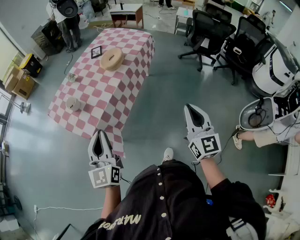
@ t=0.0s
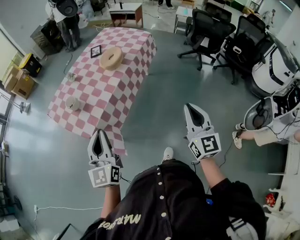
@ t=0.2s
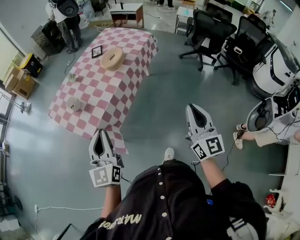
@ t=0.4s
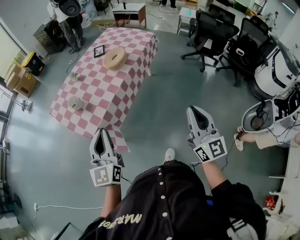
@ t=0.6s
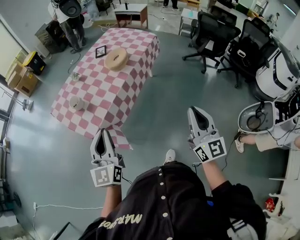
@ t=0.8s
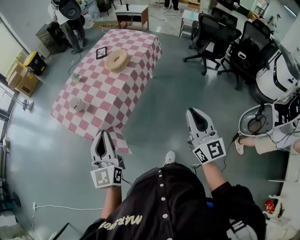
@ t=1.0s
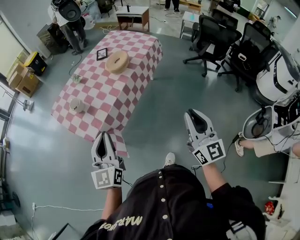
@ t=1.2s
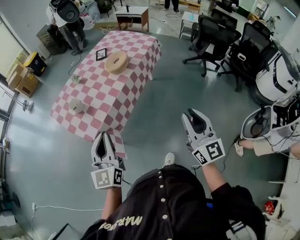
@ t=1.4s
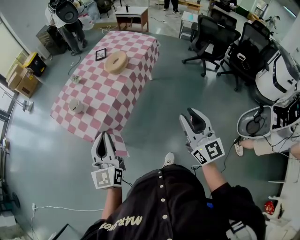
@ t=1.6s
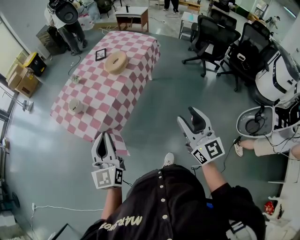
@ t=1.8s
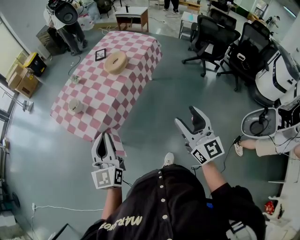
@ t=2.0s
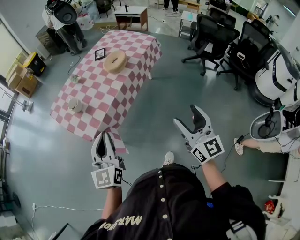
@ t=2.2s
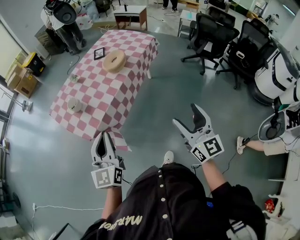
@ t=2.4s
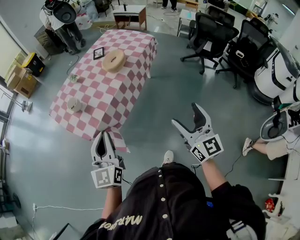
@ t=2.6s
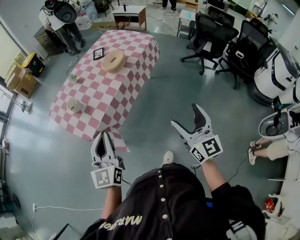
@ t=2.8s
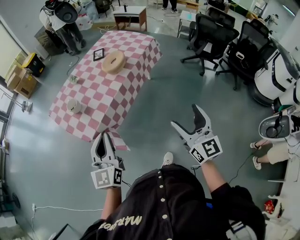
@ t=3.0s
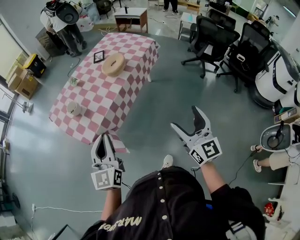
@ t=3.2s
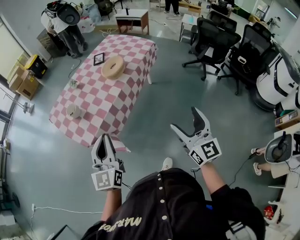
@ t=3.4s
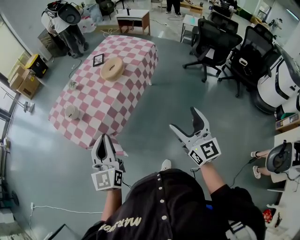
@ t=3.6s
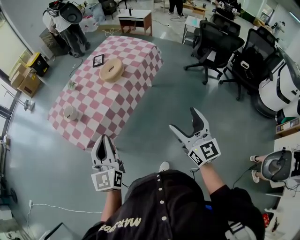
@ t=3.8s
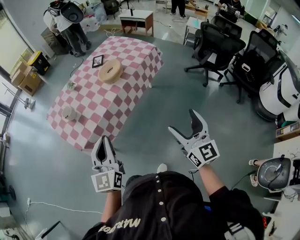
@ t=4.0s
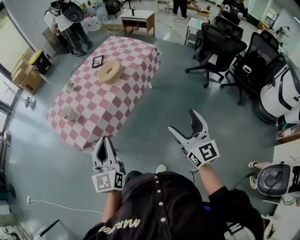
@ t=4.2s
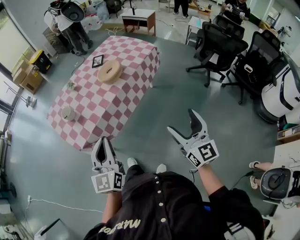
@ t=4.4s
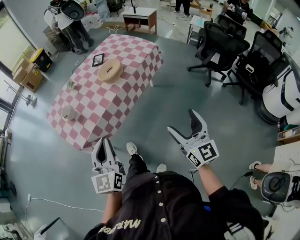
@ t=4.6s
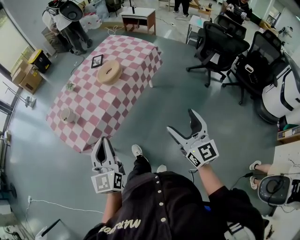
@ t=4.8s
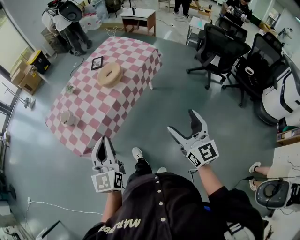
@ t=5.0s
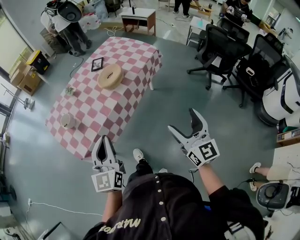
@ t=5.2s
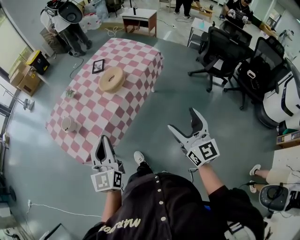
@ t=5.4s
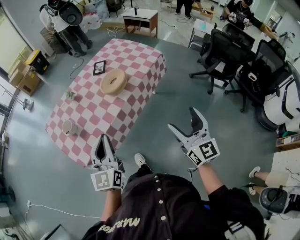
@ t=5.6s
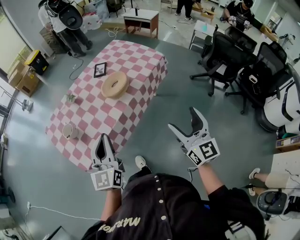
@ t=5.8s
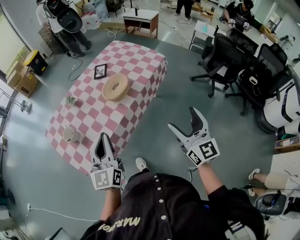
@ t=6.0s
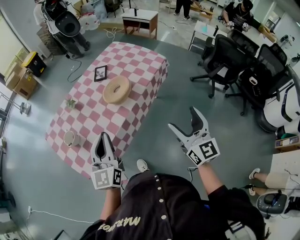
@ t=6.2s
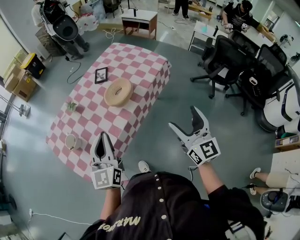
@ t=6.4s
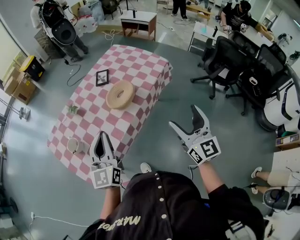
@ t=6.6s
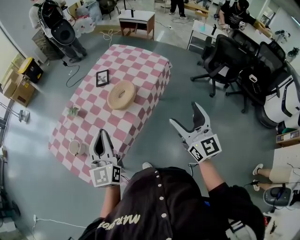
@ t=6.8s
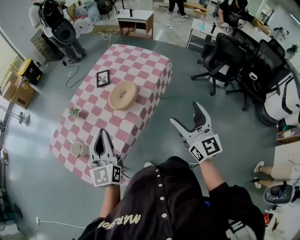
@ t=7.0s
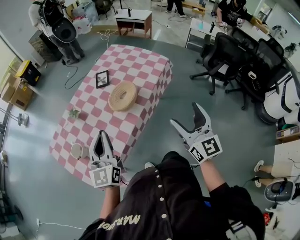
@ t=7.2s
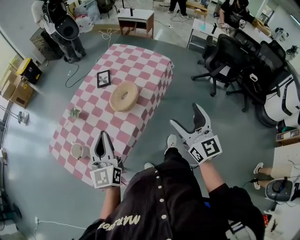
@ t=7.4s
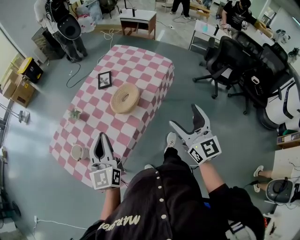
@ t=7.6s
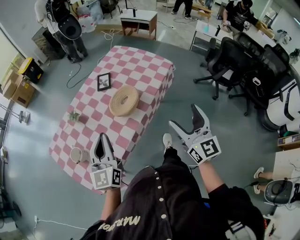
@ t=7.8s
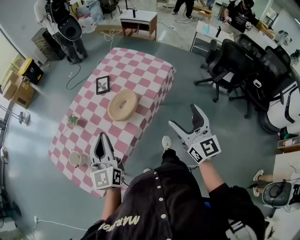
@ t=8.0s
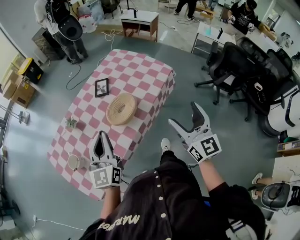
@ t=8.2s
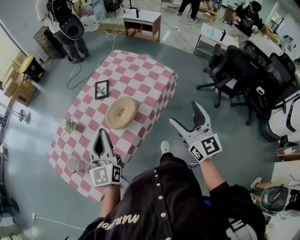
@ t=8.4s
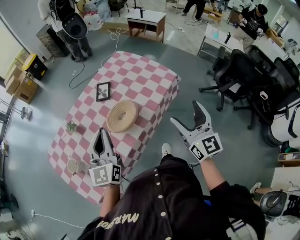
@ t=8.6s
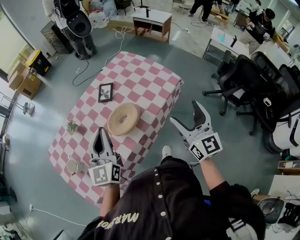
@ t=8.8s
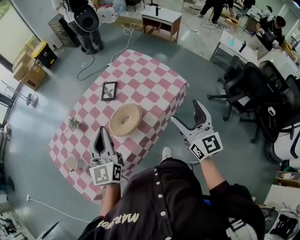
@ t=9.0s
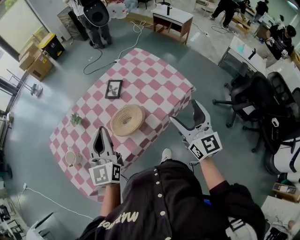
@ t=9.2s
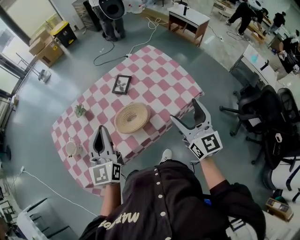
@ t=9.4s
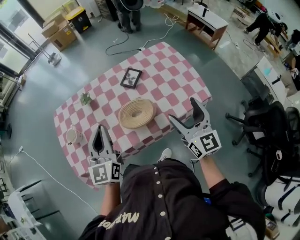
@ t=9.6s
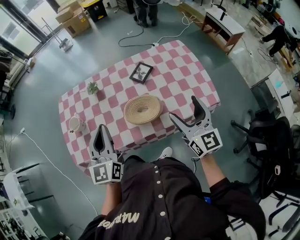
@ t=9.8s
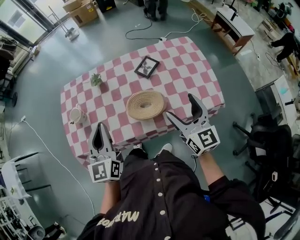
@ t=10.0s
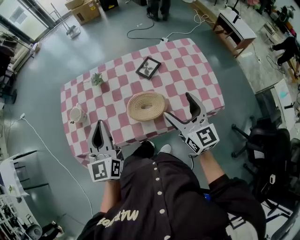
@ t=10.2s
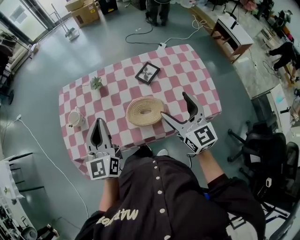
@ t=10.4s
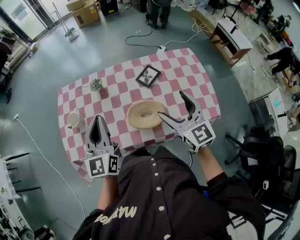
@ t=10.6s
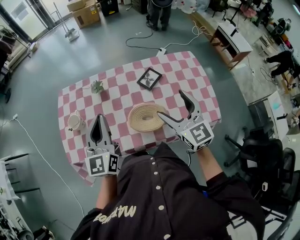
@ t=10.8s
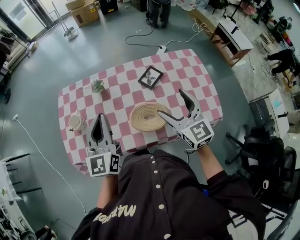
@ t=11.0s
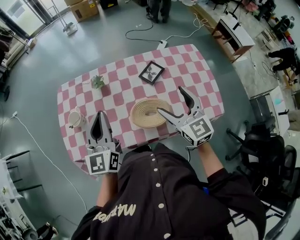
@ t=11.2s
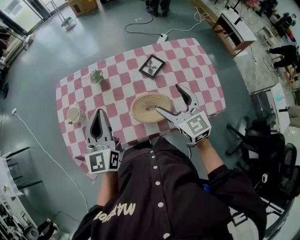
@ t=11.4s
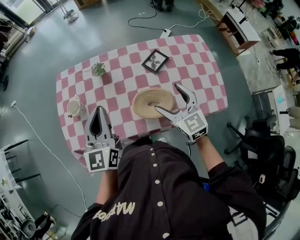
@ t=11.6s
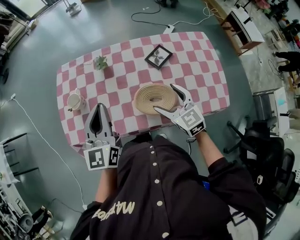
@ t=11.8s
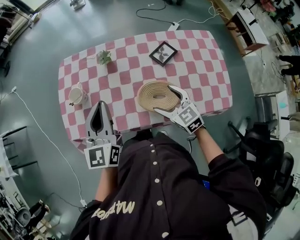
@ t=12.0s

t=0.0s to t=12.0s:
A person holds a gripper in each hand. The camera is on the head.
t=0.0s to t=1.6s: The grippers stay close to where they were, moving slightly.
t=1.6s to t=3.0s: The right gripper opens up.
t=3.0s to t=4.4s: The right gripper shifts about 15 cm to the right and forward; the left gripper travels to the right by some 10 cm.
t=4.4s to t=6.0s: The grippers both shift forward by some 20 cm.
t=6.0s to t=7.6s: Both grippers travel together forward and to the left, approximately 15 cm.
t=7.6s to t=9.0s: The two grippers go approximately 20 cm forward and to the right.
t=9.0s to t=10.4s: The left gripper changes place by approximately 10 cm, and turns by some 30 degrees. Meanwhile the right gripper moves about 20 cm, and turns by about 40 degrees.
t=10.4s to t=12.0s: The right gripper shifts roughly 20 cm downward and to the left, and rotates approximately 30 degrees. The left gripper shifts by some 5 cm.

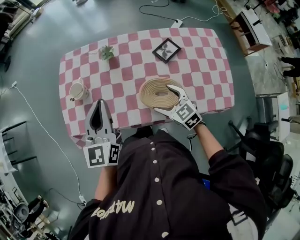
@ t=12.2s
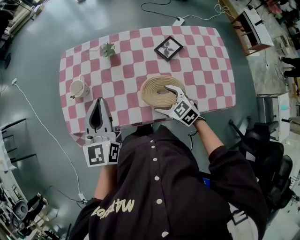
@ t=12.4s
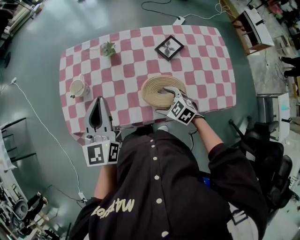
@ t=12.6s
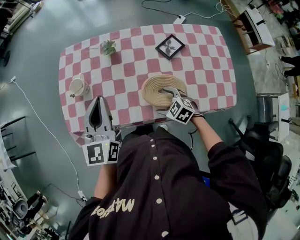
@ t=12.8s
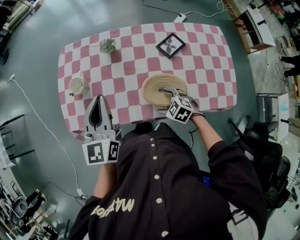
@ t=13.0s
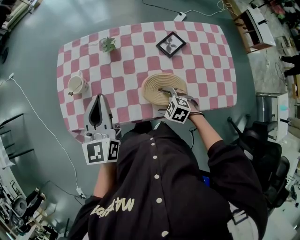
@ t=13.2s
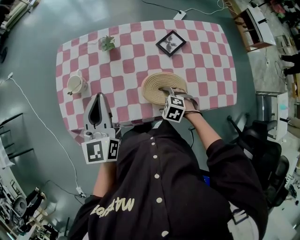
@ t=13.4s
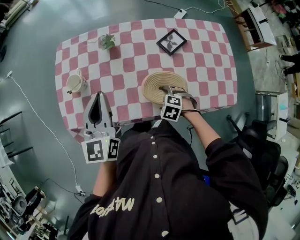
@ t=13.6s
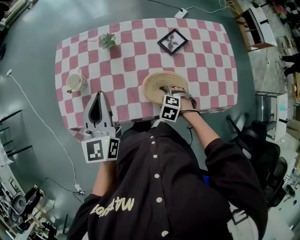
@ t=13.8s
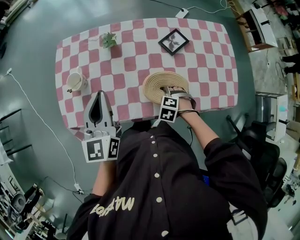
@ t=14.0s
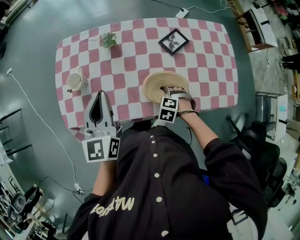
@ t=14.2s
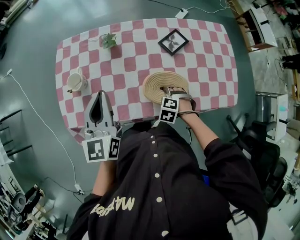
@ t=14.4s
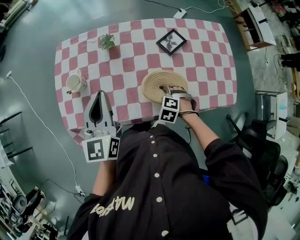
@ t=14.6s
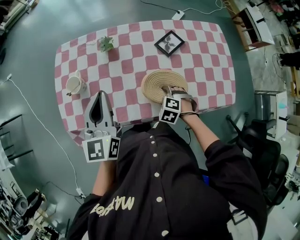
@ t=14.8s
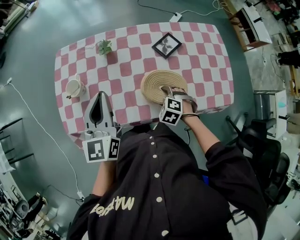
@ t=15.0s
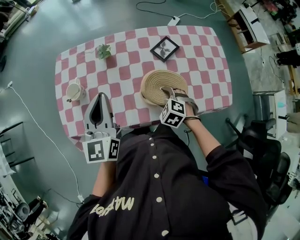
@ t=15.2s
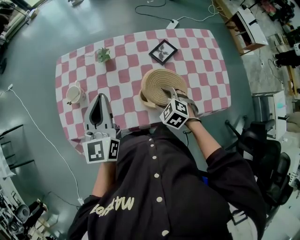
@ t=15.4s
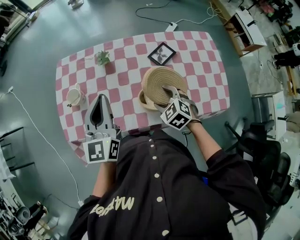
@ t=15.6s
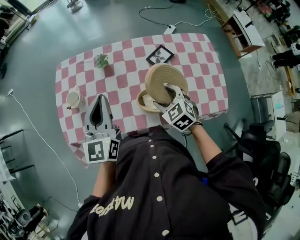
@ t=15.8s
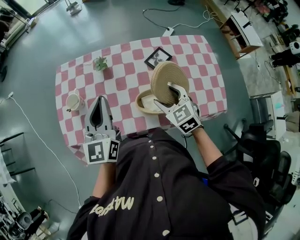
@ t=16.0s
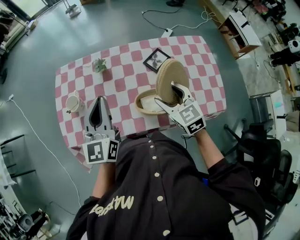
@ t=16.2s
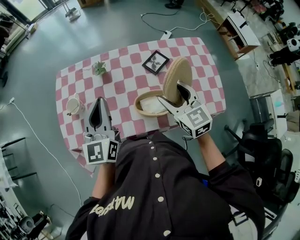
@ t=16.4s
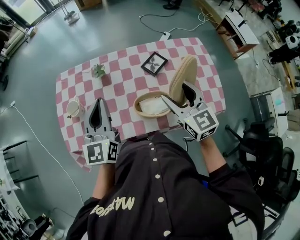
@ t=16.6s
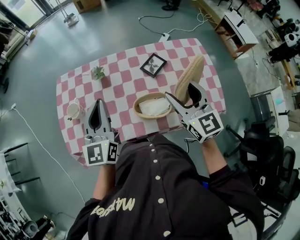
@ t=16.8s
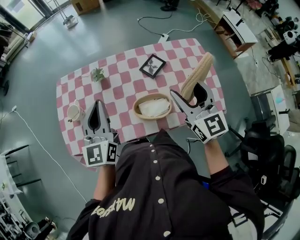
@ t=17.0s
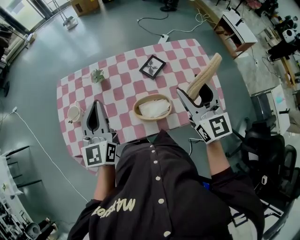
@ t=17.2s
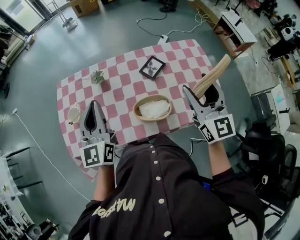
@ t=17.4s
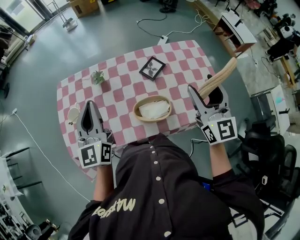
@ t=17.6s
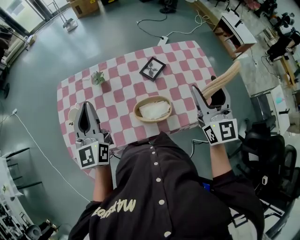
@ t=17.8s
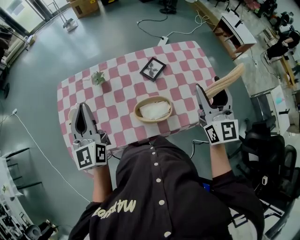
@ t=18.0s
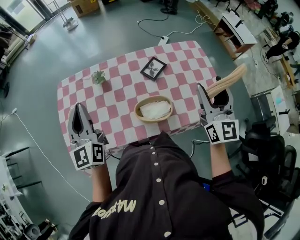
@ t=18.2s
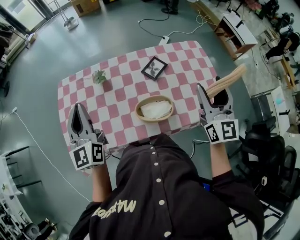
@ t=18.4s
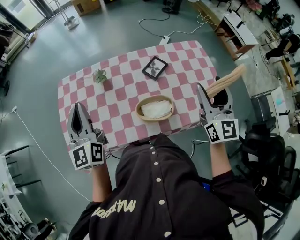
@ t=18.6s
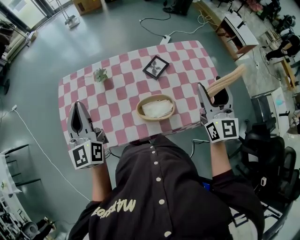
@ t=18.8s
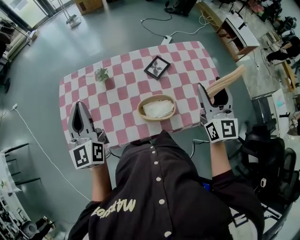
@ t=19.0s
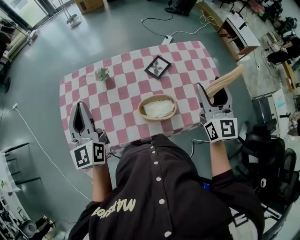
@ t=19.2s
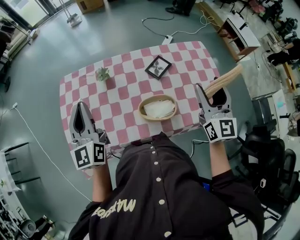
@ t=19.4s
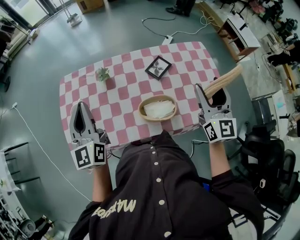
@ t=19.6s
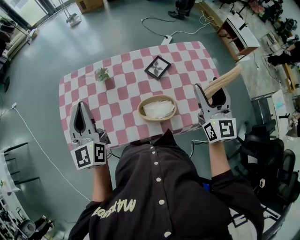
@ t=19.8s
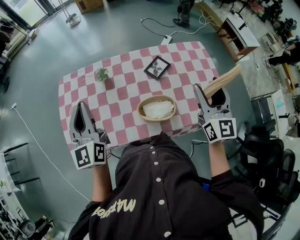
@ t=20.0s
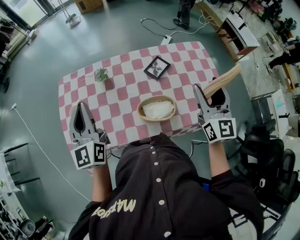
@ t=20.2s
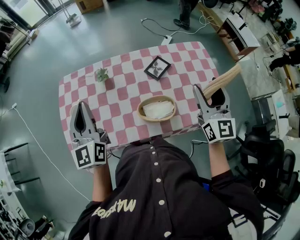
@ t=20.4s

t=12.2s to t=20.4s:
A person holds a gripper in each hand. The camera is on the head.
t=12.2s to t=13.8s: The right gripper heads downward, covering roughly 15 cm, and angles its fingers downward, by approximately 40 degrees.
t=13.8s to t=15.4s: The right gripper moves upward, approximately 10 cm, and turns by roughly 30 degrees.
t=15.4s to t=17.2s: The right gripper goes some 30 cm upward and to the right, and points its fingers some 60 degrees further upward.
t=17.2s to t=18.8s: The left gripper is displaced to the left by about 10 cm; the right gripper goes approximately 5 cm to the right.
t=18.8s to t=20.4s: The grippers move only a little.

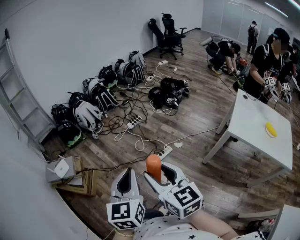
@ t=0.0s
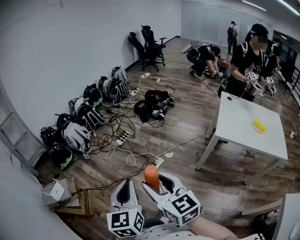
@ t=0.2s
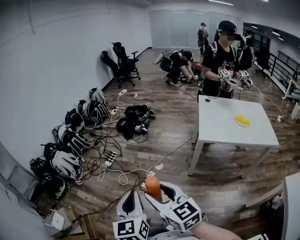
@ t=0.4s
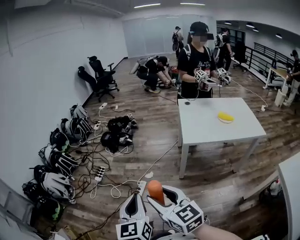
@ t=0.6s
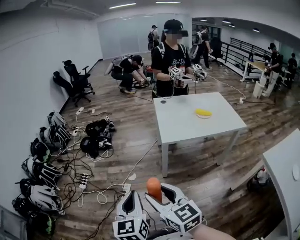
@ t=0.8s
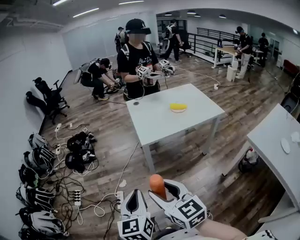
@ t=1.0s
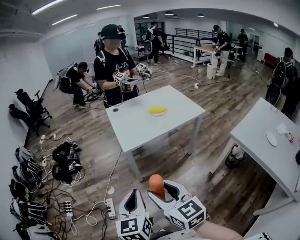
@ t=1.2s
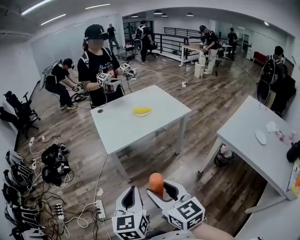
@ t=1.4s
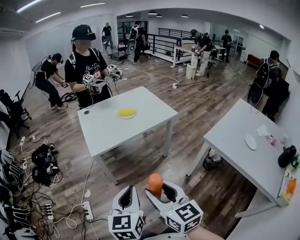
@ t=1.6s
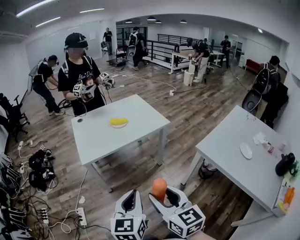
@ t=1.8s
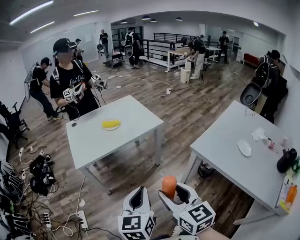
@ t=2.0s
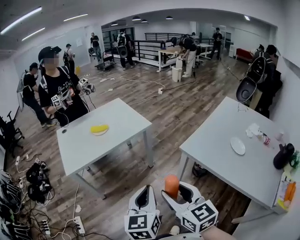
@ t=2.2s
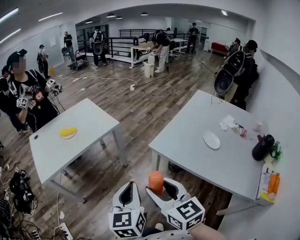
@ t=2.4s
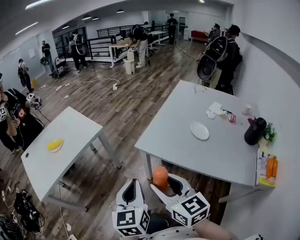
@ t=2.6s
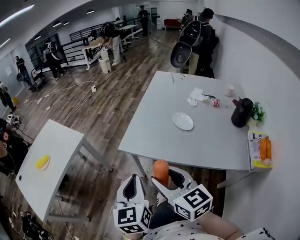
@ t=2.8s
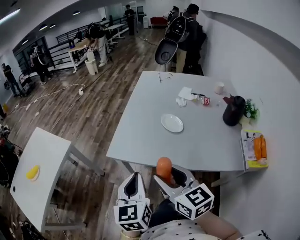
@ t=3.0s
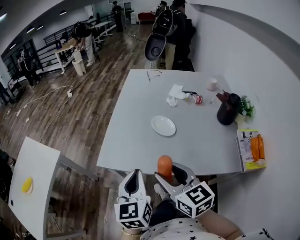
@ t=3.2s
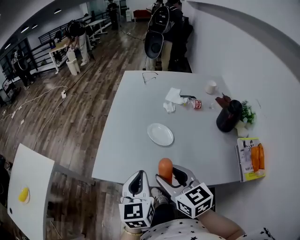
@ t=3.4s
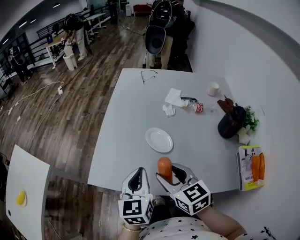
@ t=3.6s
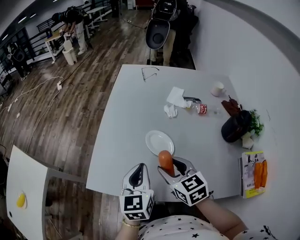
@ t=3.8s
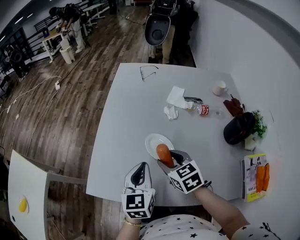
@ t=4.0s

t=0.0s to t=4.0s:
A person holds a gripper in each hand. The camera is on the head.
t=0.0s to t=1.4s: The left gripper changes place by some 40 cm, and swivels roughly 60 degrees; the right gripper shifts by approximately 40 cm, and rotates some 60 degrees.
t=1.4s to t=2.6s: The pair of grippers is taken some 50 cm. The left gripper swivels about 30 degrees. The right gripper swivels about 30 degrees.
t=2.6s to t=4.0s: The two grippers travel together, about 50 cm. The left gripper rotates roughly 30 degrees, while the right gripper turns by approximately 30 degrees.
